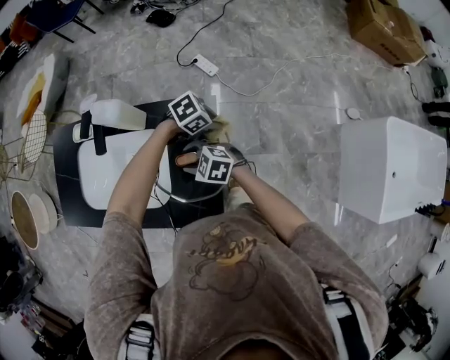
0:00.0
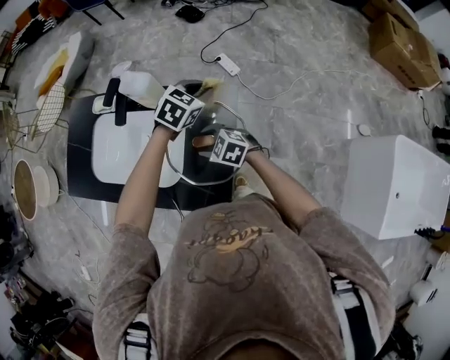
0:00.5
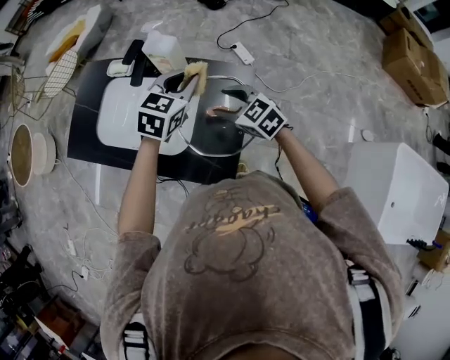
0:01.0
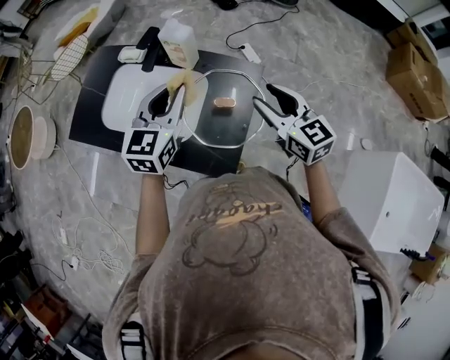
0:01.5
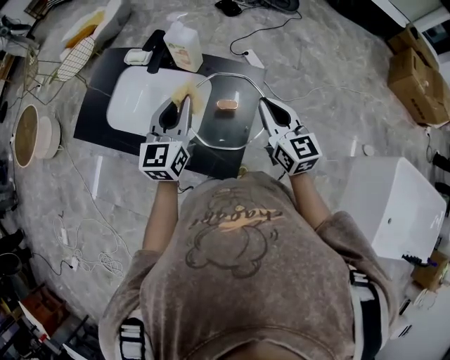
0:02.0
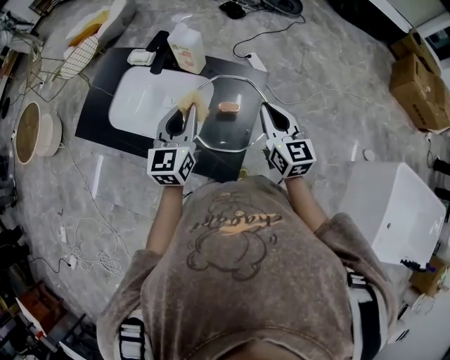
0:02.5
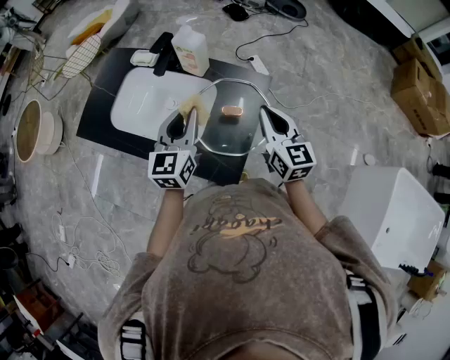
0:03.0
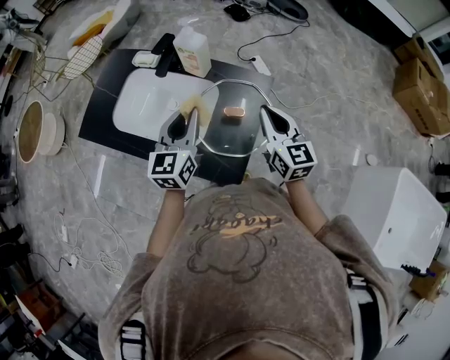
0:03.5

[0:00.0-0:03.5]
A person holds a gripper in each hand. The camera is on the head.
0:00.0 to 0:02.0: The right gripper shifts approximately 20 cm upward, tilts its fingers roughly 40 degrees upward, and closes up; the left gripper shifts by approximately 35 cm, and angles its fingers upward, by approximately 50 degrees.
0:02.0 to 0:03.5: The grippers stay close to where they were, moving slightly.

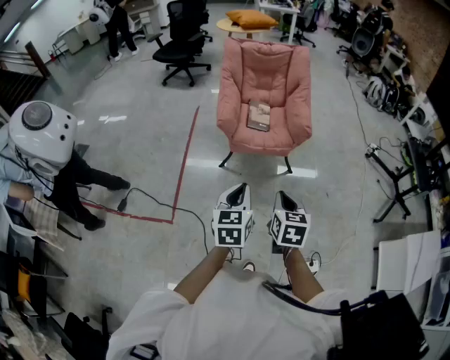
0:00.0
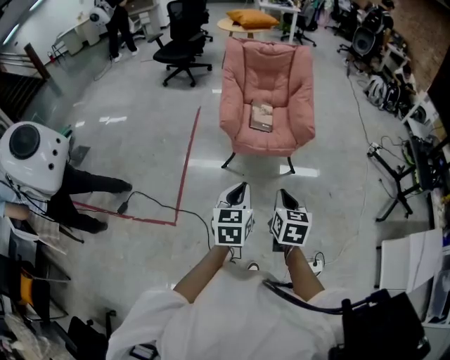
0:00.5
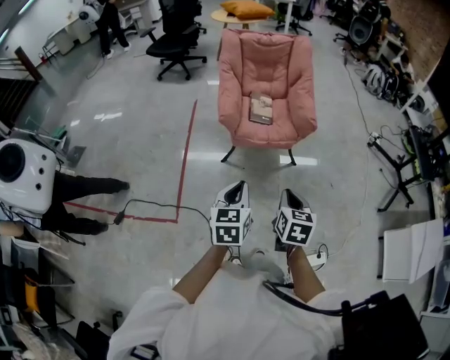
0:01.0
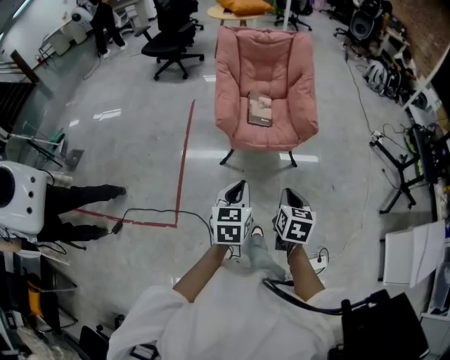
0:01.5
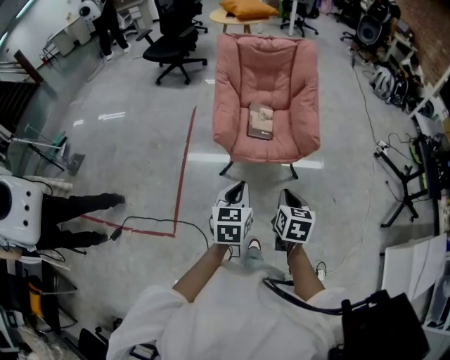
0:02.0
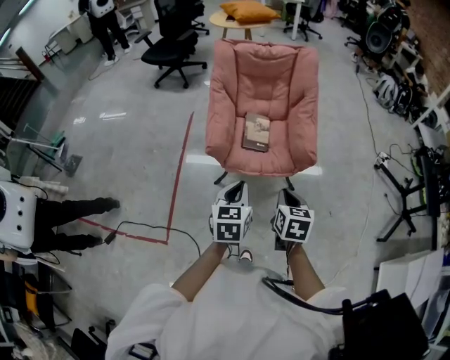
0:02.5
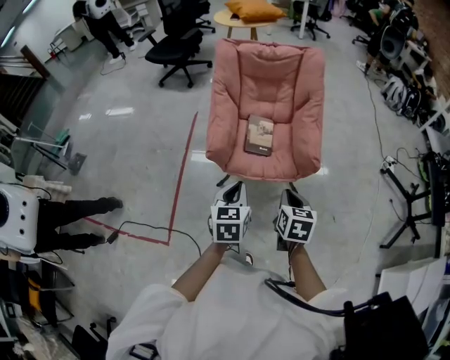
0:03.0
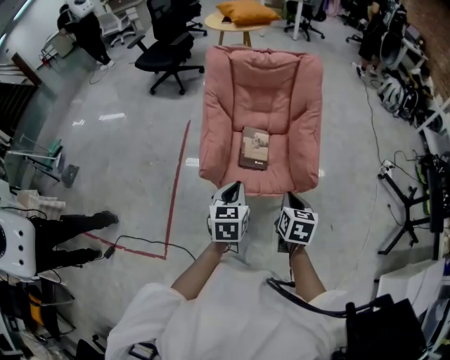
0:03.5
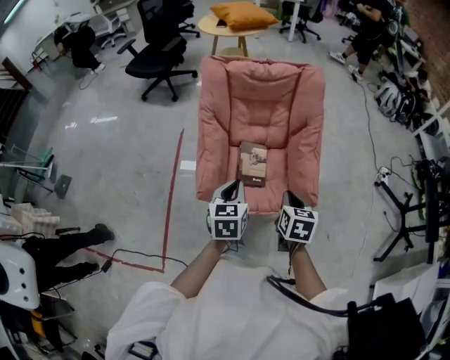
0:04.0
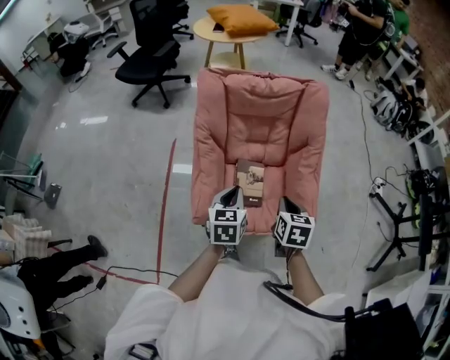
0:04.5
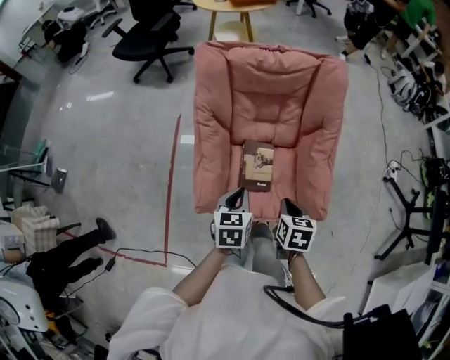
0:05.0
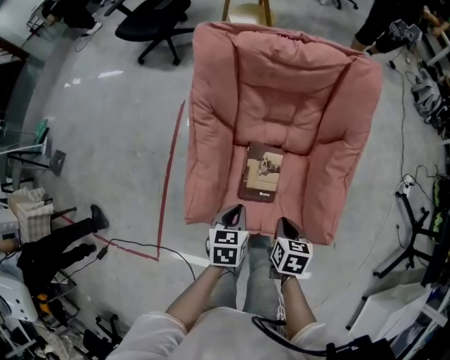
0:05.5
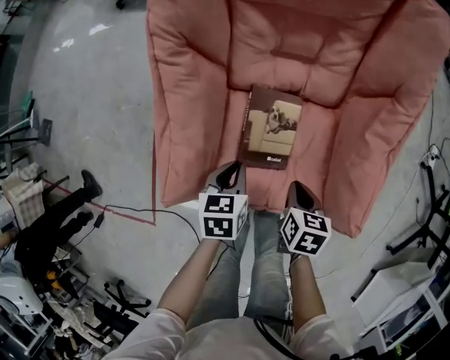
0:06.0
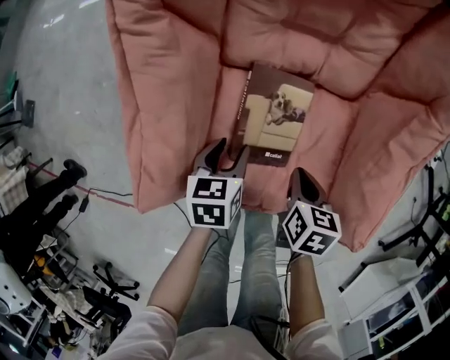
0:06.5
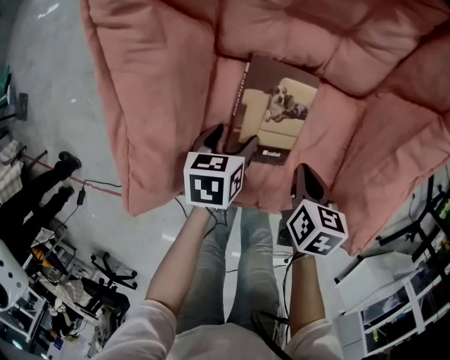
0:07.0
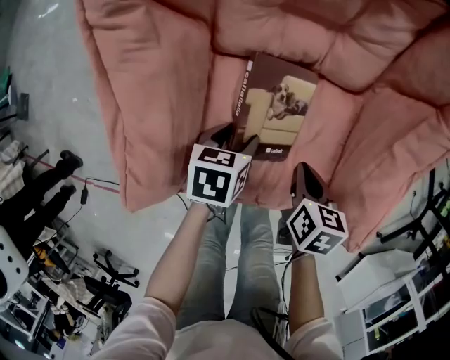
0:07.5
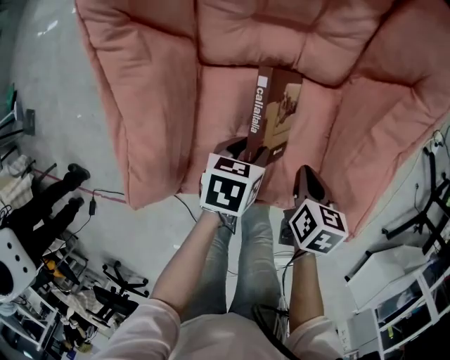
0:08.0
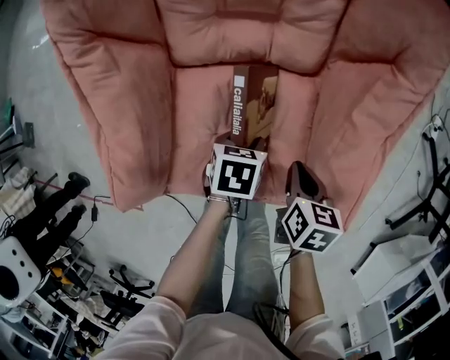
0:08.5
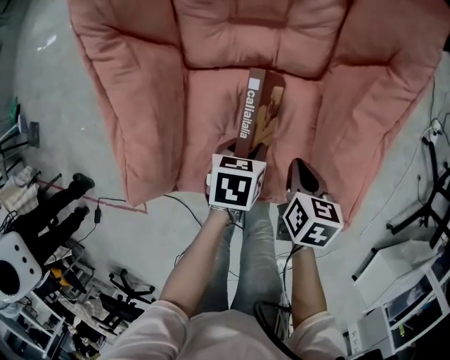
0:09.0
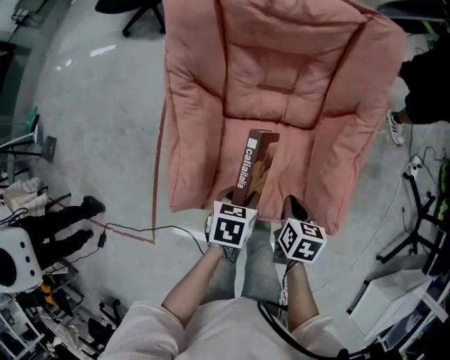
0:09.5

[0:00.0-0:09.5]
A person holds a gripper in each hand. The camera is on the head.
0:00.0 to 0:02.0: Both grippers move forward, some 20 cm.
0:02.0 to 0:04.0: The two grippers go roughly 35 cm forward.
0:04.0 to 0:05.5: The grippers both shift downward and forward by approximately 20 cm. The left gripper turns by approximately 20 degrees.
0:05.5 to 0:07.5: The grippers both shift downward by some 20 cm. The left gripper changes its angle by some 20 degrees, and opens.
0:07.5 to 0:09.5: The grippers both shift upward by roughly 15 cm.

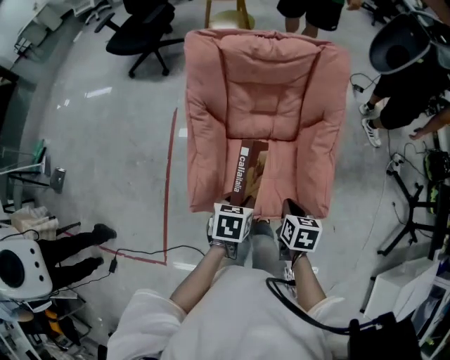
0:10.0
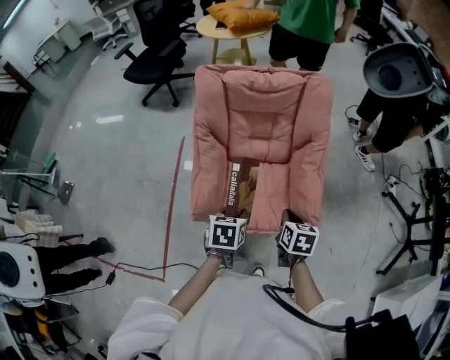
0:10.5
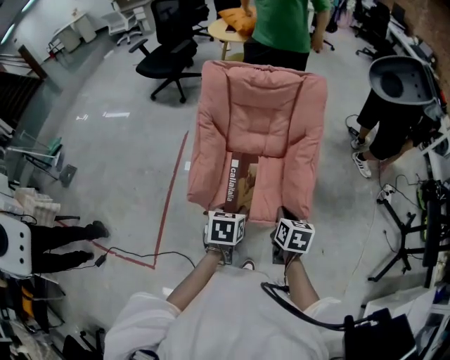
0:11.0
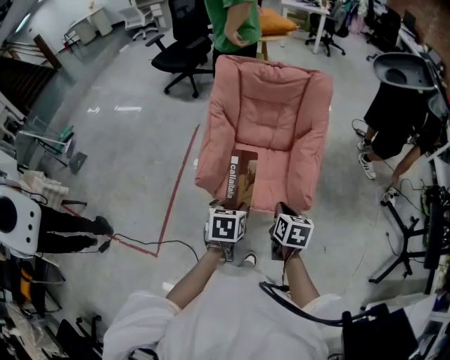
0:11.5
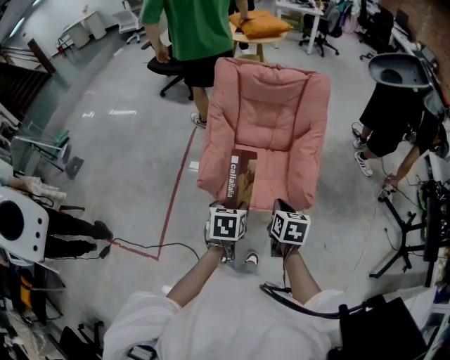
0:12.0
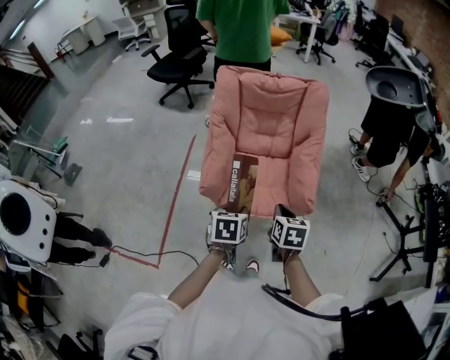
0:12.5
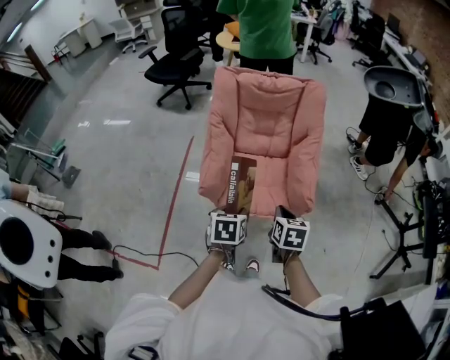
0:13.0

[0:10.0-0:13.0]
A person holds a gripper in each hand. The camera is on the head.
0:10.0 to 0:11.5: The two grippers go roughly 20 cm backward and upward.
0:11.5 to 0:13.0: The grippers make only small movements.

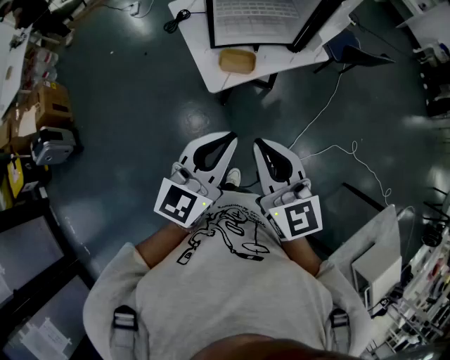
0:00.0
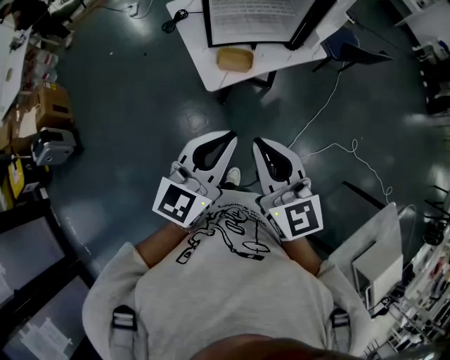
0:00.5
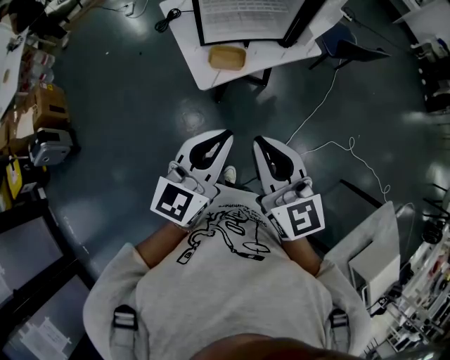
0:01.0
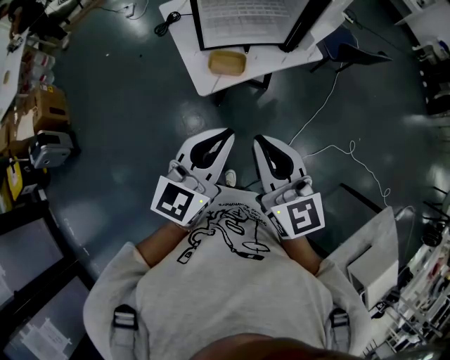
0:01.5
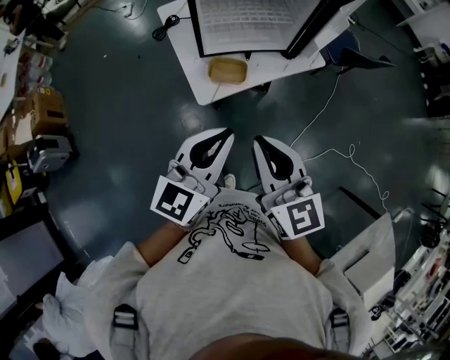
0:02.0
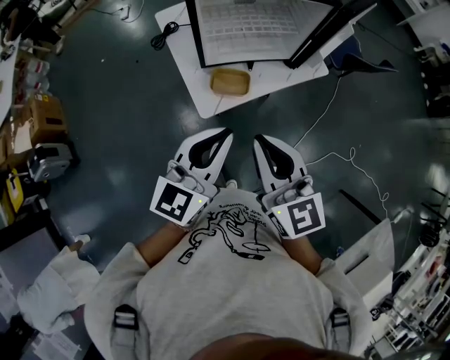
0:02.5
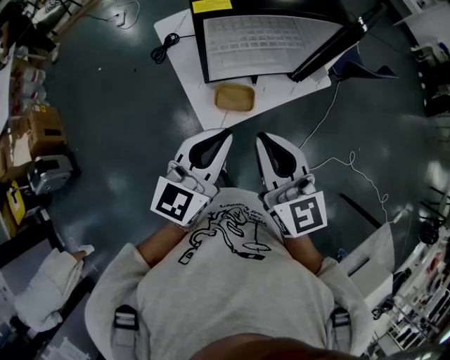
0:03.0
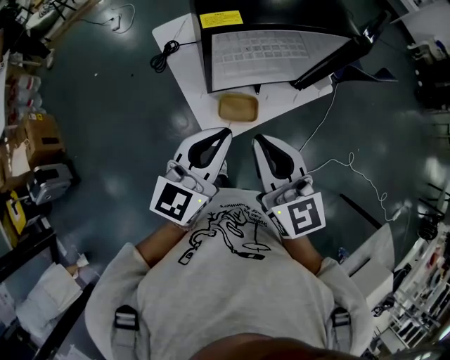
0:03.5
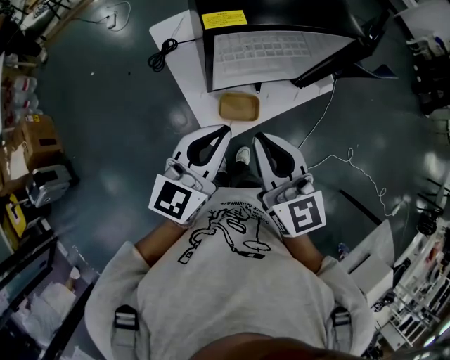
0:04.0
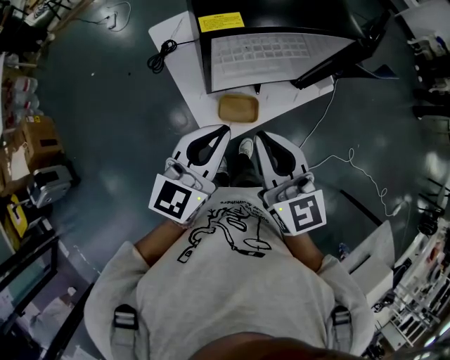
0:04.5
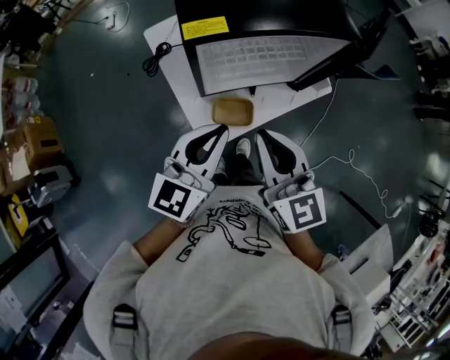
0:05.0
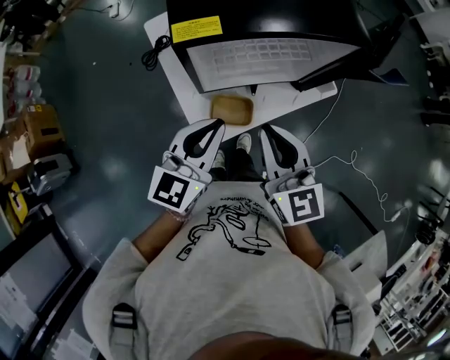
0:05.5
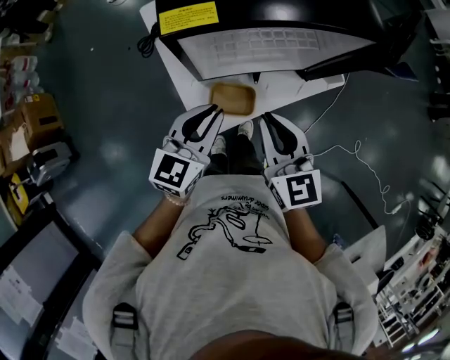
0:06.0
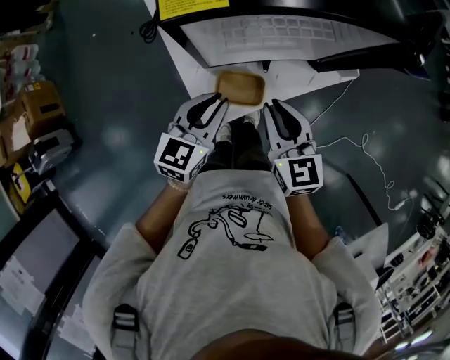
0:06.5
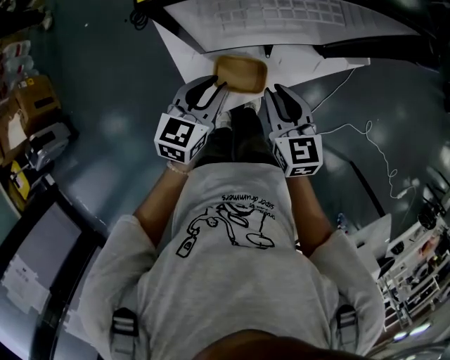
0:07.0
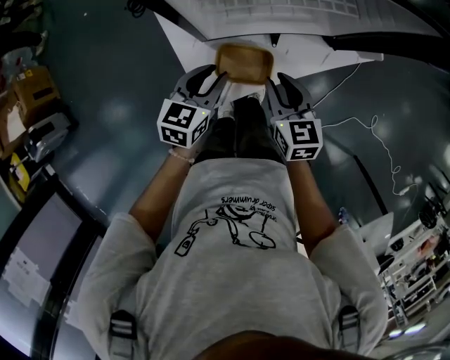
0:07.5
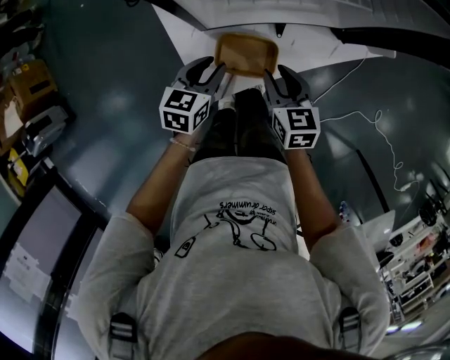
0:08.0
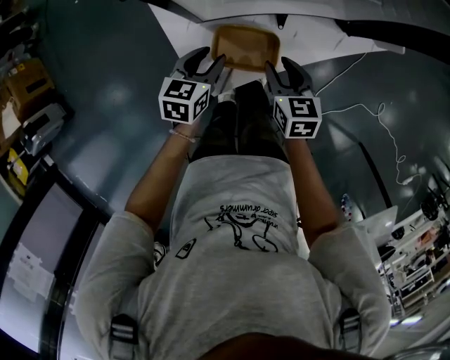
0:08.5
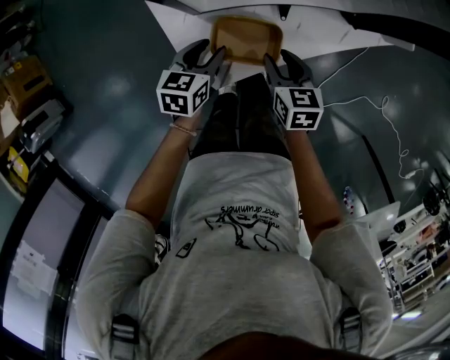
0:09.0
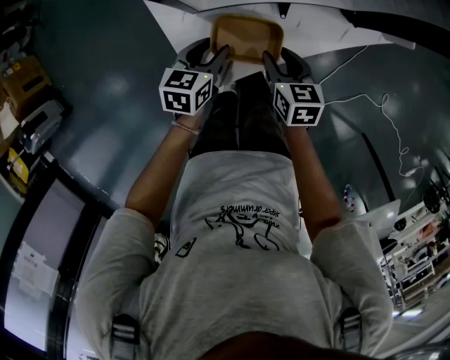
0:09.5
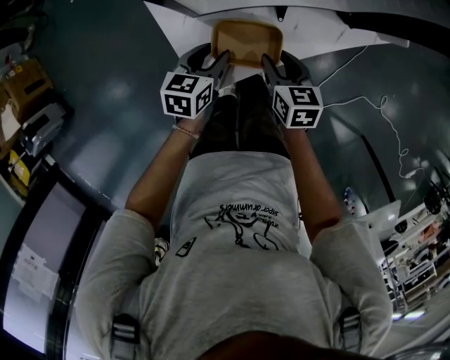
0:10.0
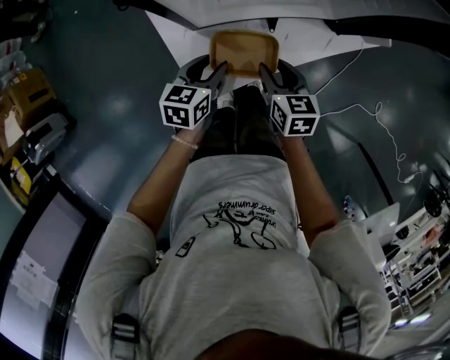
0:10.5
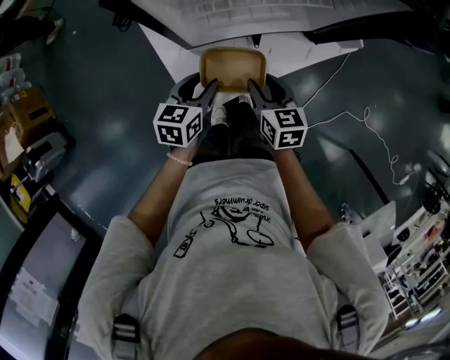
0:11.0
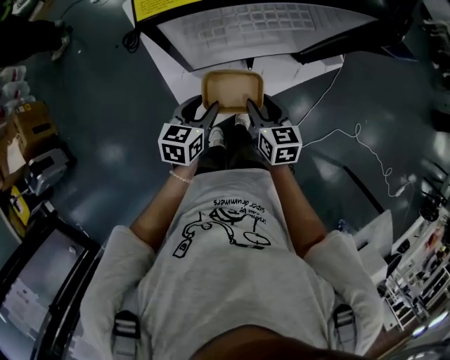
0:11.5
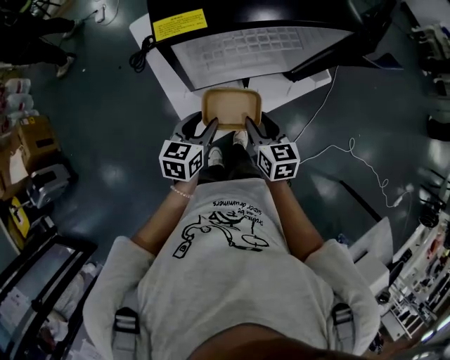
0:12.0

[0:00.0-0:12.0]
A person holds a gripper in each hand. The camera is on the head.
0:00.0 to 0:02.0: Both grippers travel together forward, about 10 cm.
0:02.0 to 0:04.0: The two grippers go approximately 25 cm forward and to the left.
0:04.0 to 0:06.0: The left gripper is displaced downward and forward by roughly 15 cm; the right gripper travels forward, downward and to the right by approximately 15 cm.
0:06.0 to 0:08.0: The two grippers go some 25 cm downward. The left gripper rotates about 20 degrees. The right gripper swivels approximately 20 degrees, and opens its fingers.
0:08.0 to 0:10.0: The right gripper travels downward by about 5 cm. Meanwhile the left gripper ends up about 5 cm from where it was.
0:10.0 to 0:12.0: Both grippers travel together upward, approximately 20 cm.
